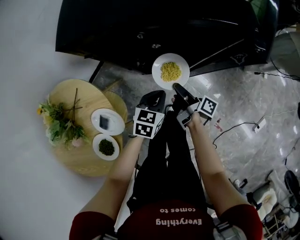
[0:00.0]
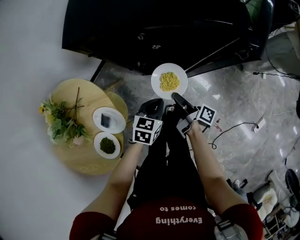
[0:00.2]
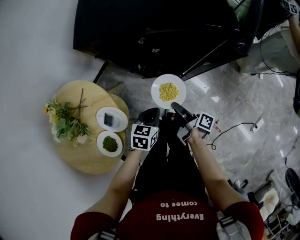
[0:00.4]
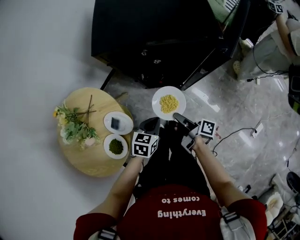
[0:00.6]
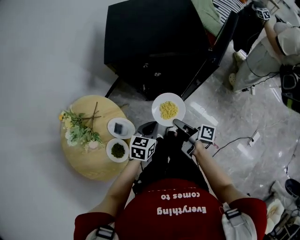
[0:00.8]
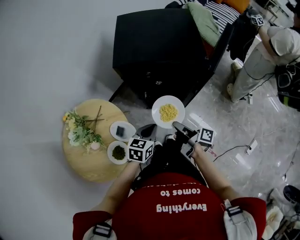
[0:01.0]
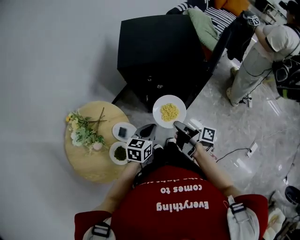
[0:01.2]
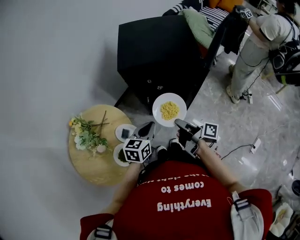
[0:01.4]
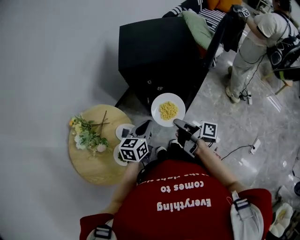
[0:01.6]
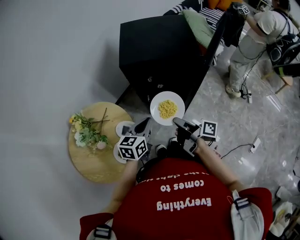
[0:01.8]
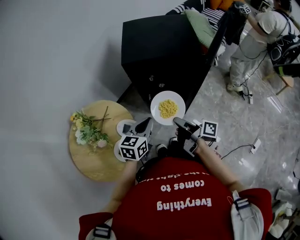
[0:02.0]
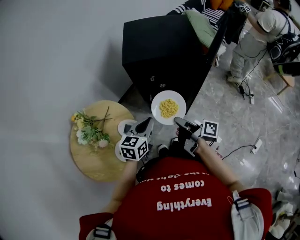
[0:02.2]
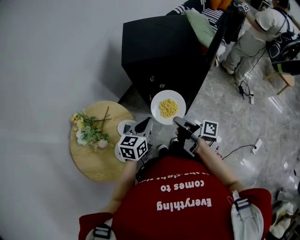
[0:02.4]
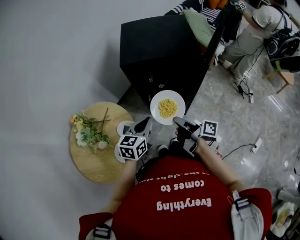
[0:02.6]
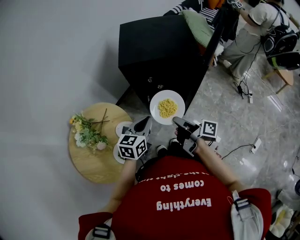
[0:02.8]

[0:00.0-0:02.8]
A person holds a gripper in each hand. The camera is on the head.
0:00.0 to 0:01.4: The left gripper heads upward, covering approximately 20 cm.

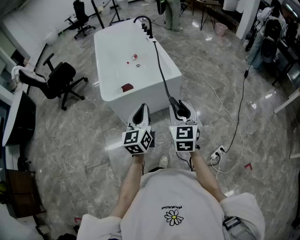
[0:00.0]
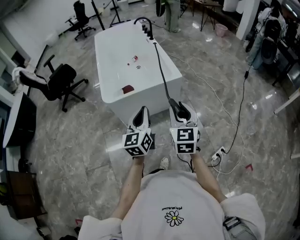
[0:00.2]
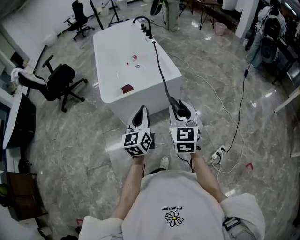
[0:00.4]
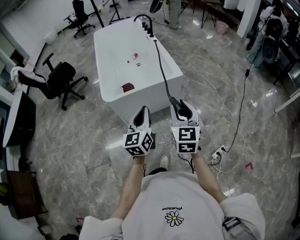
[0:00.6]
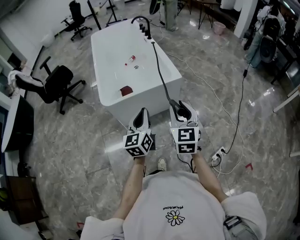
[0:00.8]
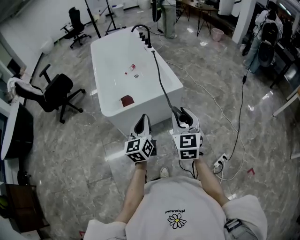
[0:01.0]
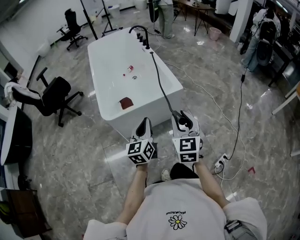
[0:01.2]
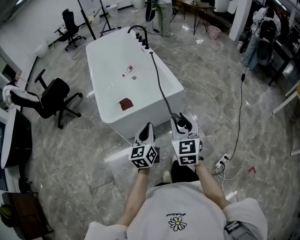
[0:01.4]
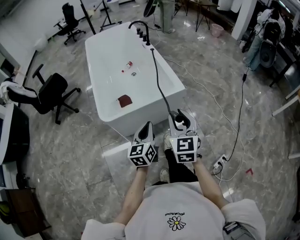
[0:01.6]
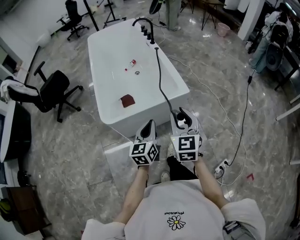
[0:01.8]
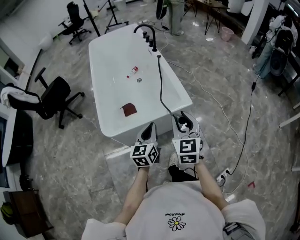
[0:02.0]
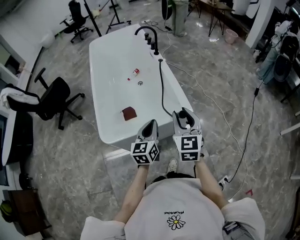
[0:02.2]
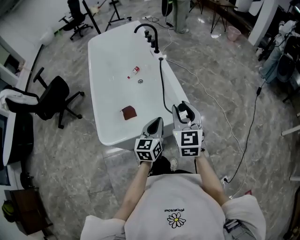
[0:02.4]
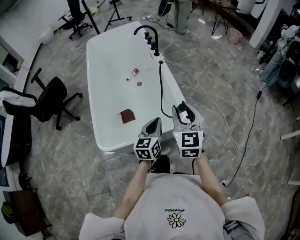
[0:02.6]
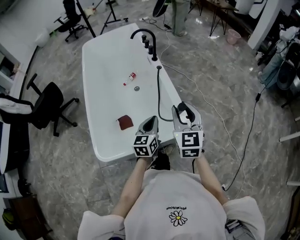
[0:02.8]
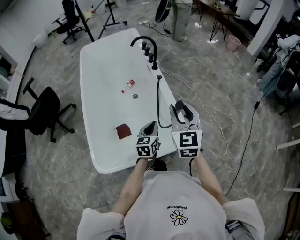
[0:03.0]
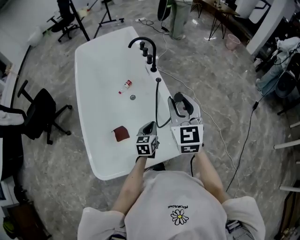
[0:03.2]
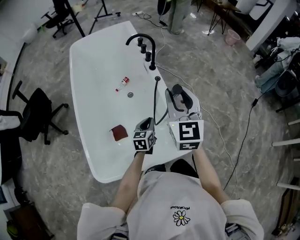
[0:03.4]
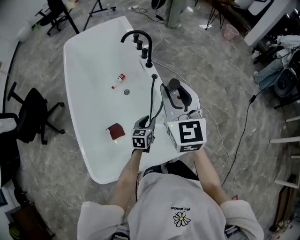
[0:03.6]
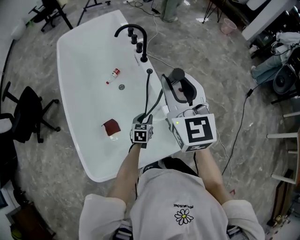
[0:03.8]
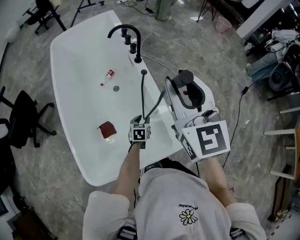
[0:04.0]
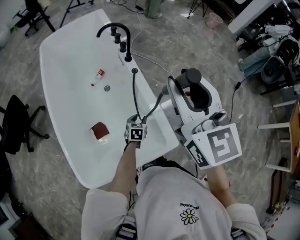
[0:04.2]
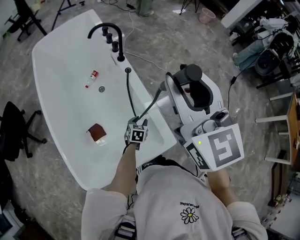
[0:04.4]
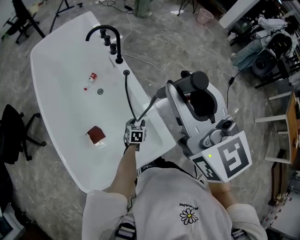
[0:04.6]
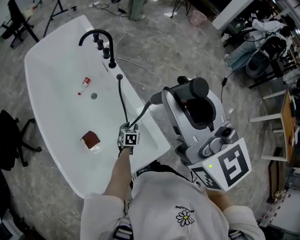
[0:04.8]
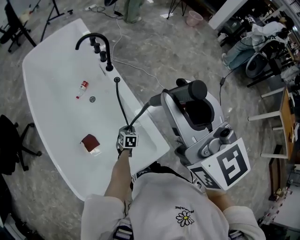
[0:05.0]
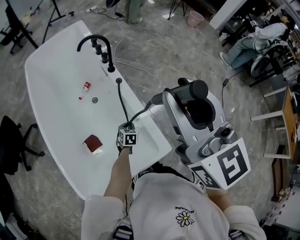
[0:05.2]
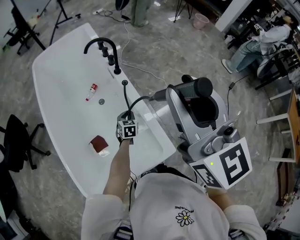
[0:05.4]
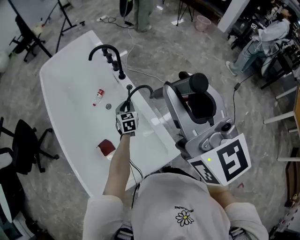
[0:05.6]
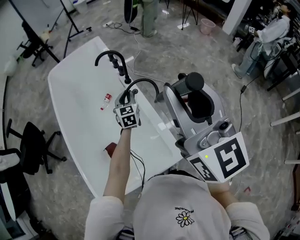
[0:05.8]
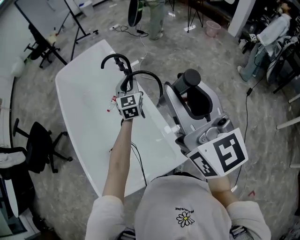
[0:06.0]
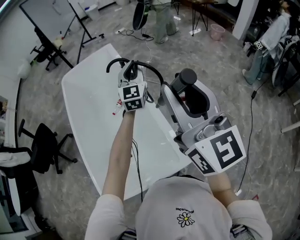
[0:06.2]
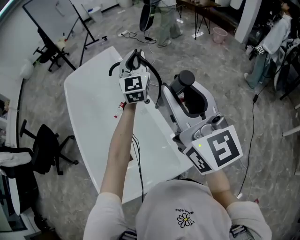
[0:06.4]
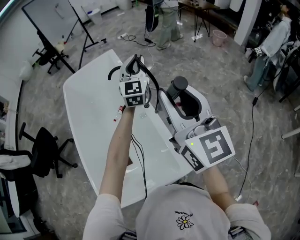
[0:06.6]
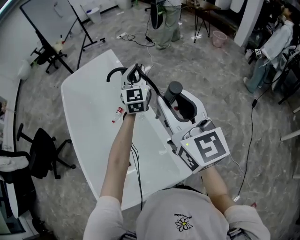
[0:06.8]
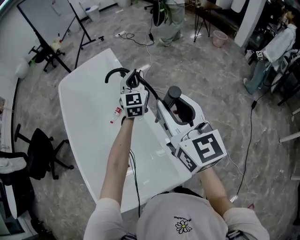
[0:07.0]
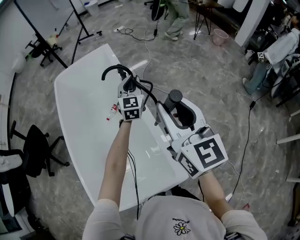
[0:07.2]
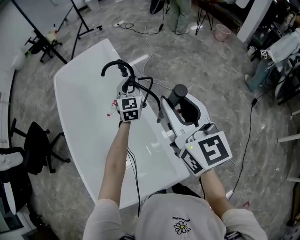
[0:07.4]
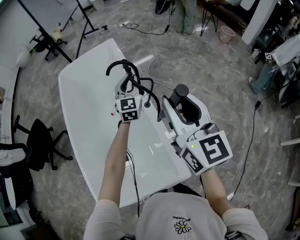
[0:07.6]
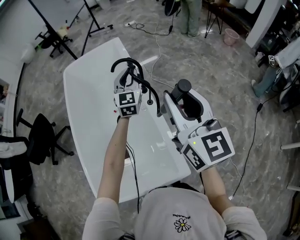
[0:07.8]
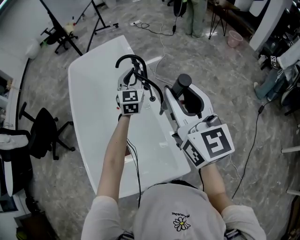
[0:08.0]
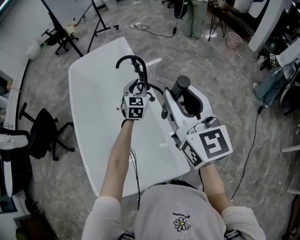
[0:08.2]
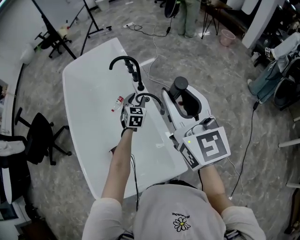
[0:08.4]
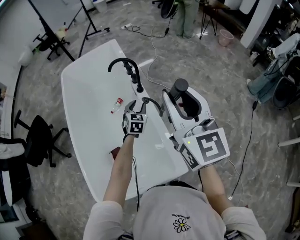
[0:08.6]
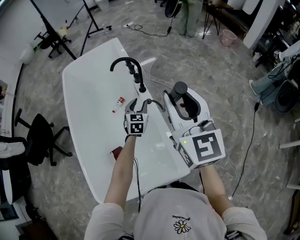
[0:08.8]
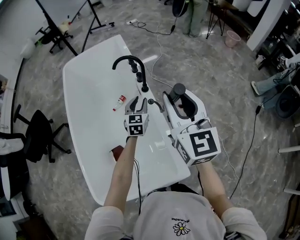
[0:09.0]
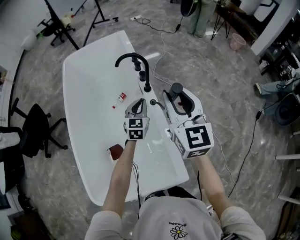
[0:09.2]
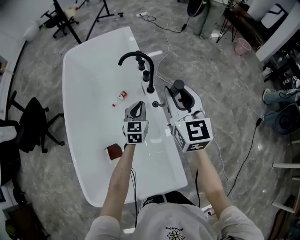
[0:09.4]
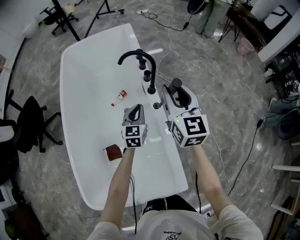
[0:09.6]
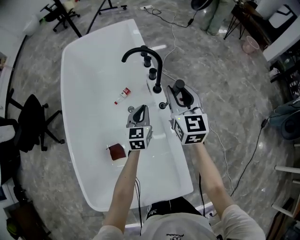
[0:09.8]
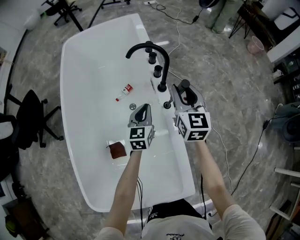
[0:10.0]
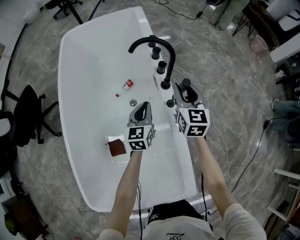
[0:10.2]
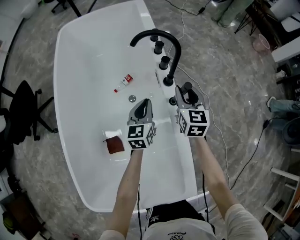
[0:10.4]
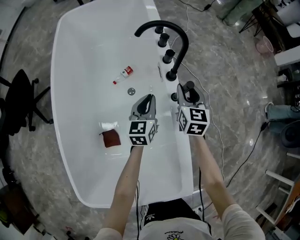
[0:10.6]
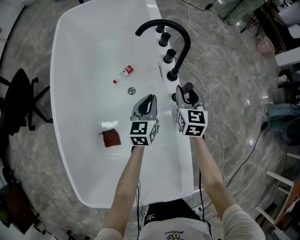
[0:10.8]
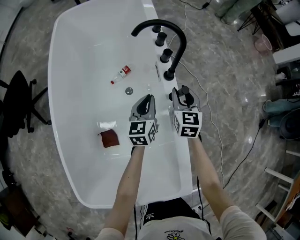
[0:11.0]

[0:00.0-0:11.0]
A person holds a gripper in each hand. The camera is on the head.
0:00.0 to 0:01.6: The right gripper heads forward and to the left, covering about 15 cm, while the left gripper goes roughly 15 cm forward and downward.
0:01.6 to 0:03.2: The two grippers travel together, forward, about 50 cm.
0:03.2 to 0:04.8: The left gripper moves downward and forward, approximately 20 cm, rotates approximately 30 degrees, and opens its fingers. Meanwhile the right gripper shifts about 15 cm upward and forward.
0:04.8 to 0:06.2: The right gripper shifts approximately 10 cm to the right and upward; the left gripper goes some 50 cm upward and forward, points its fingers roughly 60 degrees further upward, and closes its fingers.
0:06.2 to 0:07.8: The left gripper goes up and down, approximately 20 cm each way, reversing 2 times. Meanwhile the right gripper travels forward and downward by approximately 15 cm.
0:07.8 to 0:09.4: The right gripper moves forward, downward and to the left, approximately 20 cm, while the left gripper travels downward by roughly 20 cm, swivels approximately 20 degrees, and opens and closes again.
0:09.4 to 0:11.0: The right gripper is displaced downward by about 35 cm, and changes its angle by approximately 20 degrees; the left gripper is displaced downward by approximately 15 cm, and rotates roughly 20 degrees.

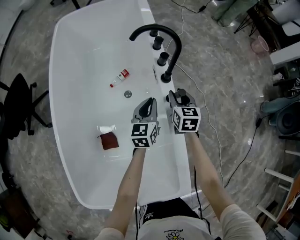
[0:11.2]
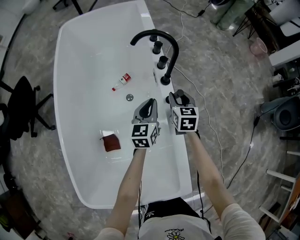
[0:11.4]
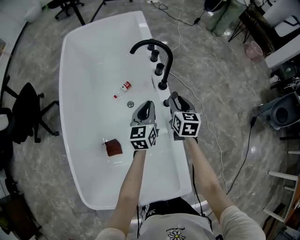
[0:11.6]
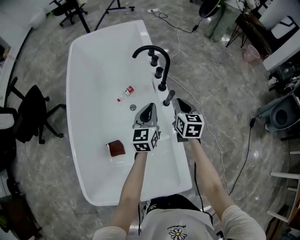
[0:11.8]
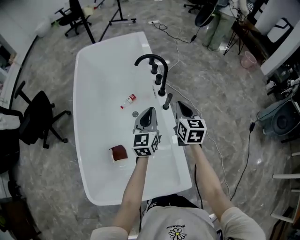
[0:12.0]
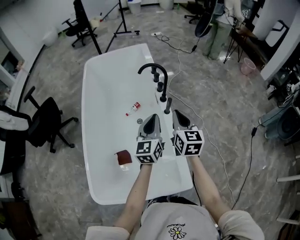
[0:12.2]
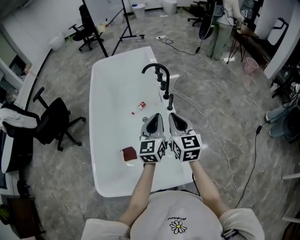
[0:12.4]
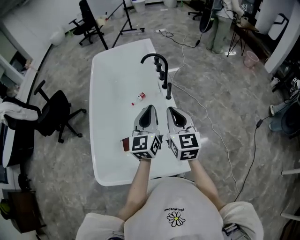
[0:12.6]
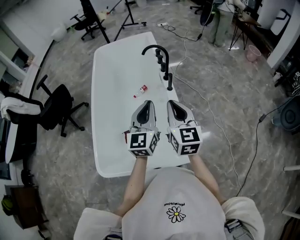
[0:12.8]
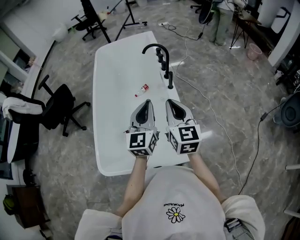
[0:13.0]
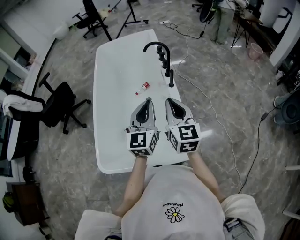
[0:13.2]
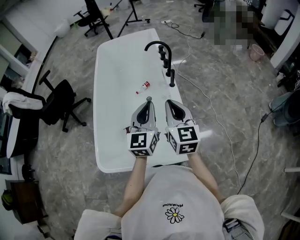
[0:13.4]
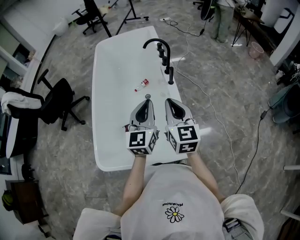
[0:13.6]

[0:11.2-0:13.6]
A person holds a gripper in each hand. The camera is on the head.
0:11.2 to 0:12.4: Both grippers move upward and backward, about 40 cm. The left gripper rotates roughly 20 degrees. The right gripper turns by about 20 degrees, and closes its fingers.
0:12.4 to 0:13.6: Both grippers move backward, roughly 10 cm.

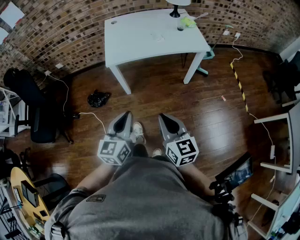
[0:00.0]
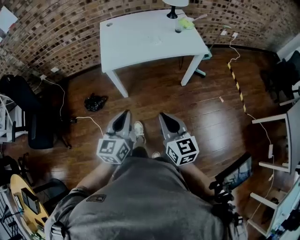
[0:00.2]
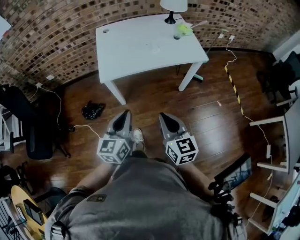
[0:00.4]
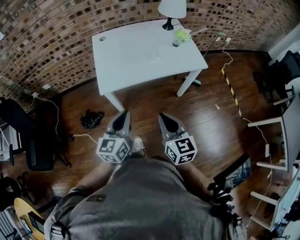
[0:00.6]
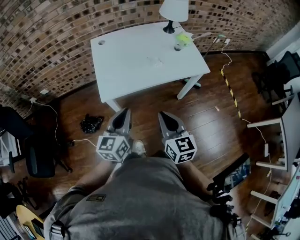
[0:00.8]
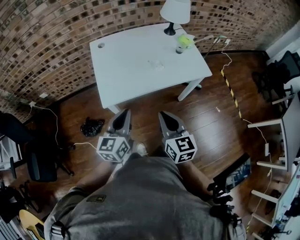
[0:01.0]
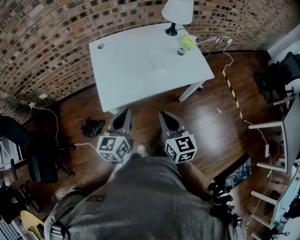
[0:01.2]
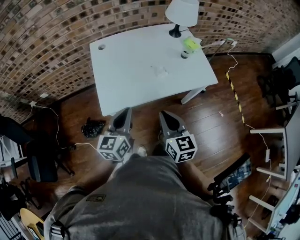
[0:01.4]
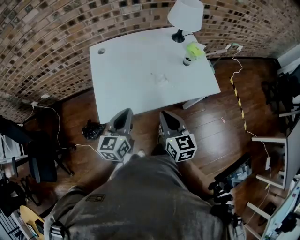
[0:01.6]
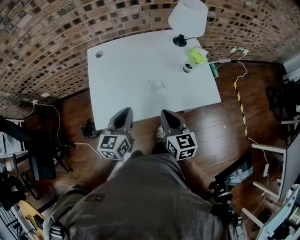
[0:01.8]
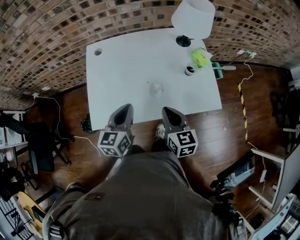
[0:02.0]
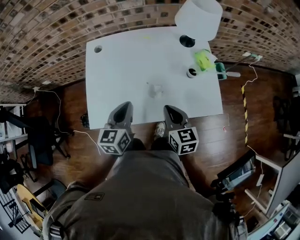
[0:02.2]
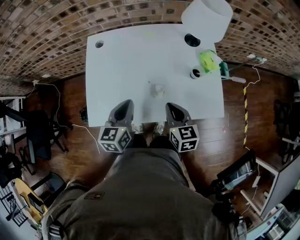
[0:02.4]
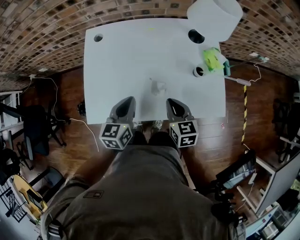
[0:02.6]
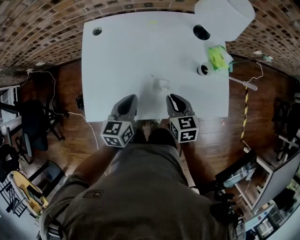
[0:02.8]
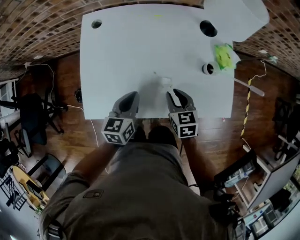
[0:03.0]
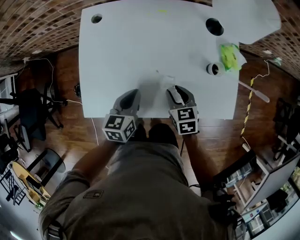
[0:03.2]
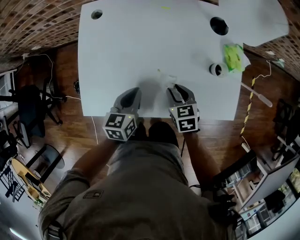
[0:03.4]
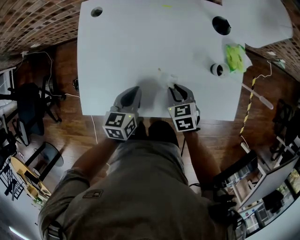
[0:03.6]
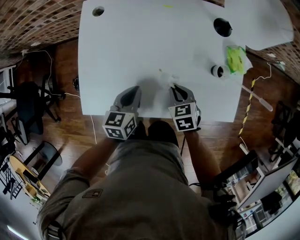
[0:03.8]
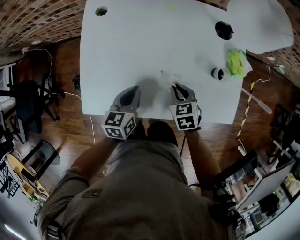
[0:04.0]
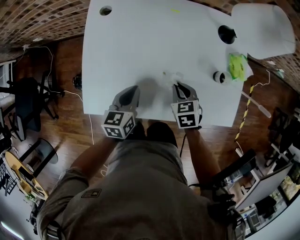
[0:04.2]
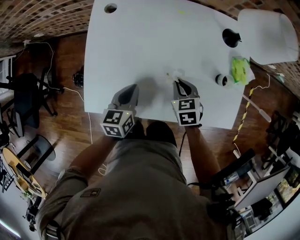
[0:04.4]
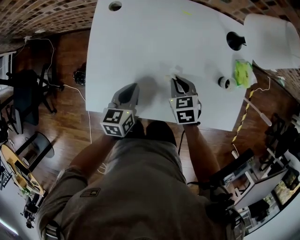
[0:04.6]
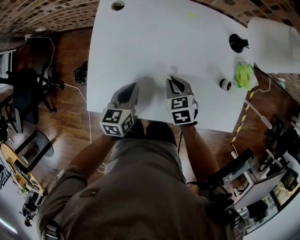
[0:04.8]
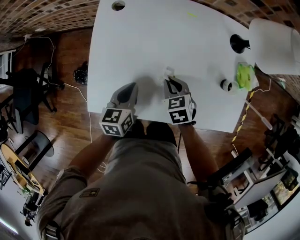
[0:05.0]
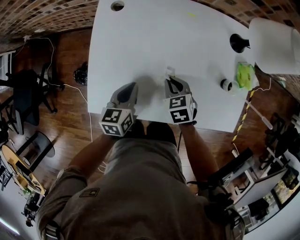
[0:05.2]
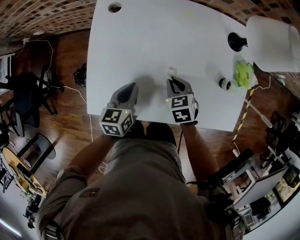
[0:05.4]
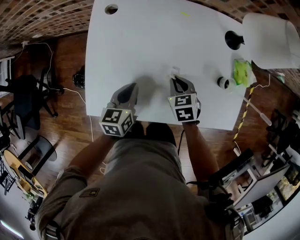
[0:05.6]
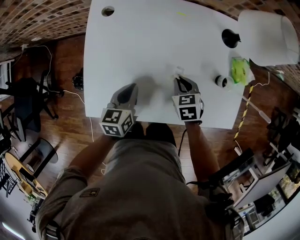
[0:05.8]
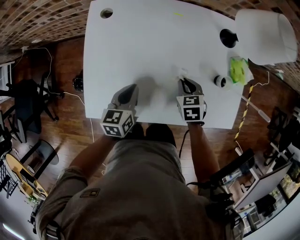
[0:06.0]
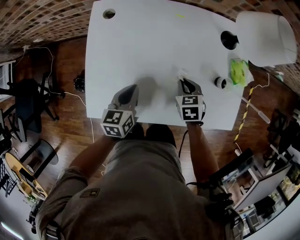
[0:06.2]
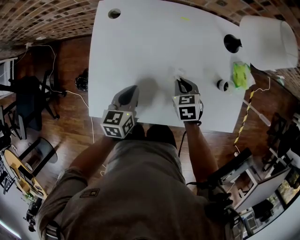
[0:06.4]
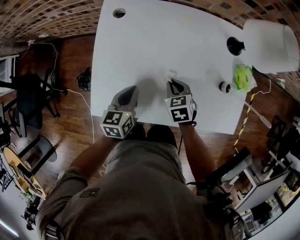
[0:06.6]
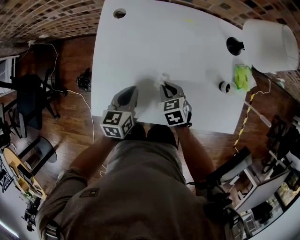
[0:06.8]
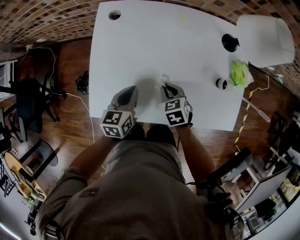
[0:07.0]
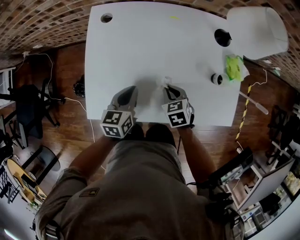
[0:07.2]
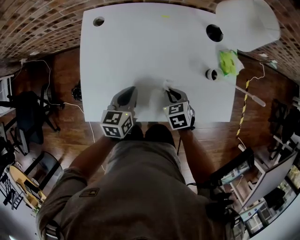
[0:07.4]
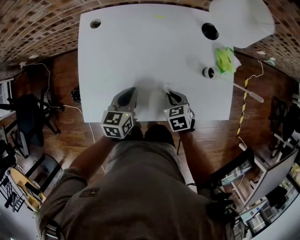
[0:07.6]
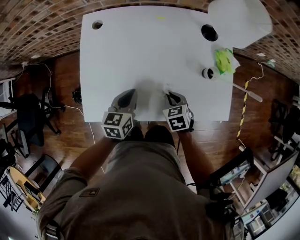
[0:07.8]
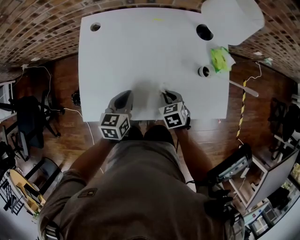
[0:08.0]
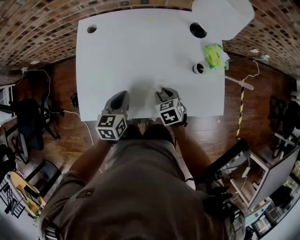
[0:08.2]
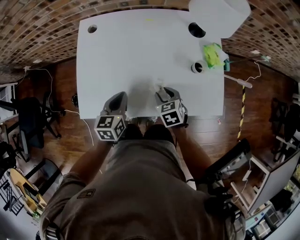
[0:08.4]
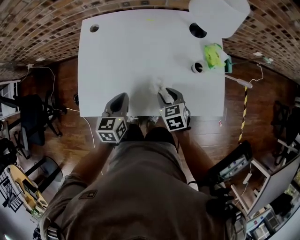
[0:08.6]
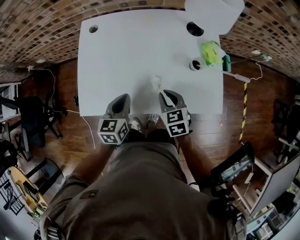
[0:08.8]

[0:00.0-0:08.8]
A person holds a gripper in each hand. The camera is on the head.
0:00.0 to 0:01.4: The two grippers go roughly 35 cm forward.
0:01.4 to 0:03.0: The two grippers go approximately 30 cm forward, downward and to the right. The left gripper turns by about 20 degrees. The right gripper swivels roughly 30 degrees, and opens up.
0:03.0 to 0:04.4: The right gripper is displaced forward by some 5 cm, while the left gripper shifts by some 5 cm.
0:05.8 to 0:07.4: The right gripper is displaced backward by approximately 5 cm, and reaches roughly 10 cm to the left, then returns.
0:07.4 to 0:08.8: The left gripper shifts approximately 5 cm backward; the right gripper goes about 10 cm upward, and opens, then closes again.
